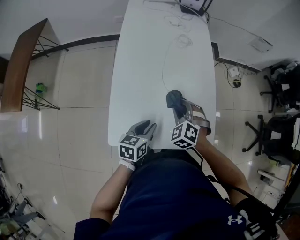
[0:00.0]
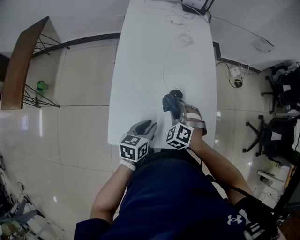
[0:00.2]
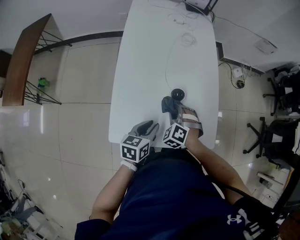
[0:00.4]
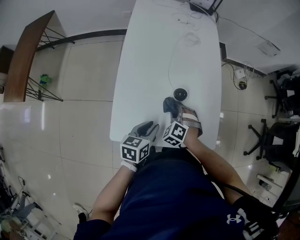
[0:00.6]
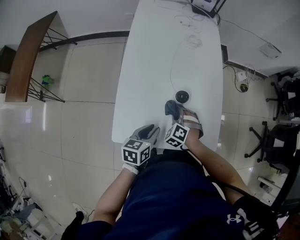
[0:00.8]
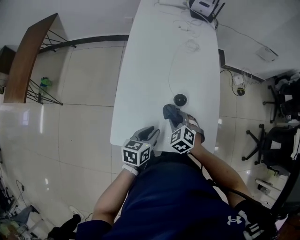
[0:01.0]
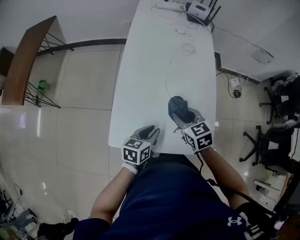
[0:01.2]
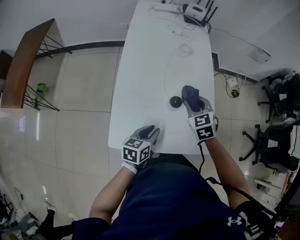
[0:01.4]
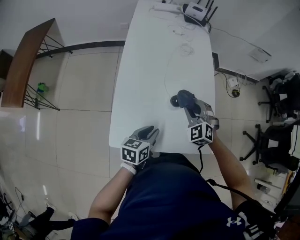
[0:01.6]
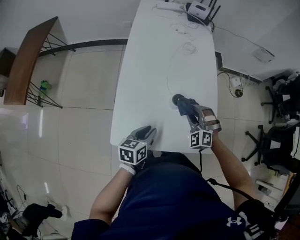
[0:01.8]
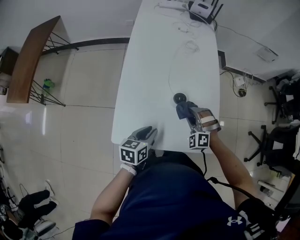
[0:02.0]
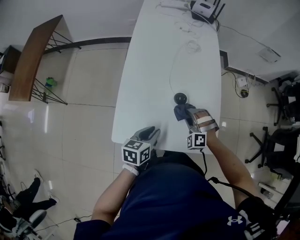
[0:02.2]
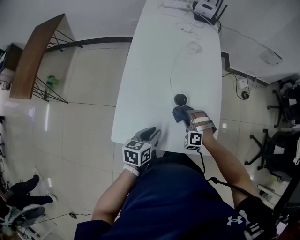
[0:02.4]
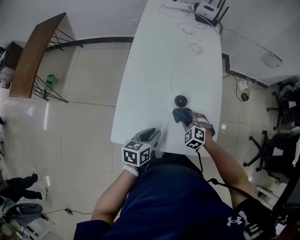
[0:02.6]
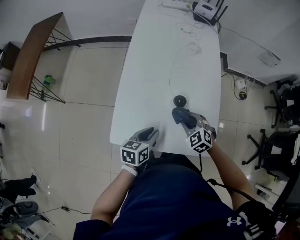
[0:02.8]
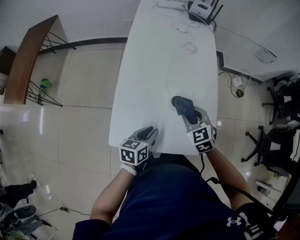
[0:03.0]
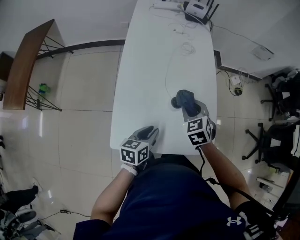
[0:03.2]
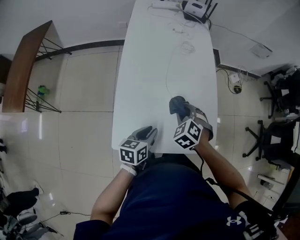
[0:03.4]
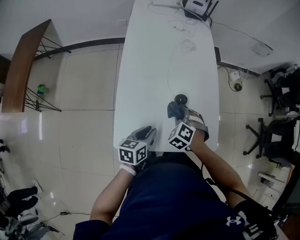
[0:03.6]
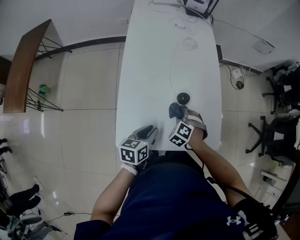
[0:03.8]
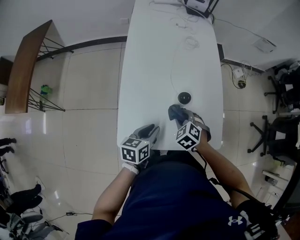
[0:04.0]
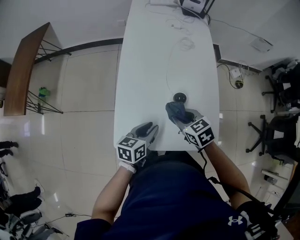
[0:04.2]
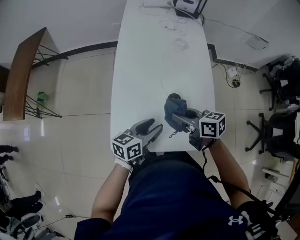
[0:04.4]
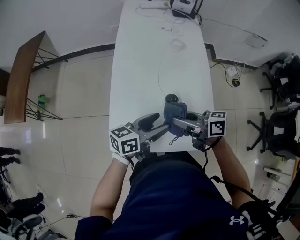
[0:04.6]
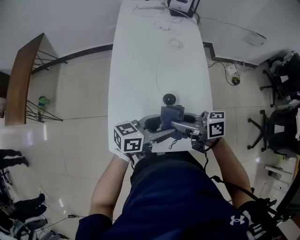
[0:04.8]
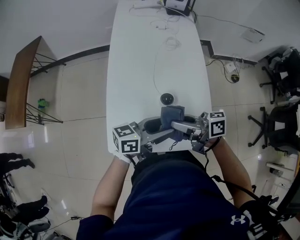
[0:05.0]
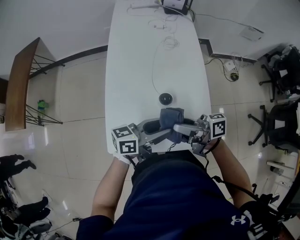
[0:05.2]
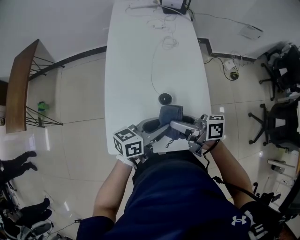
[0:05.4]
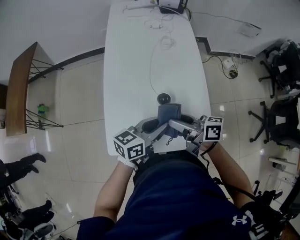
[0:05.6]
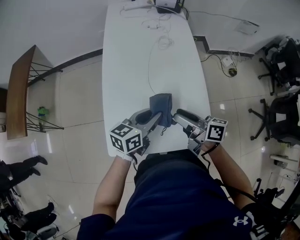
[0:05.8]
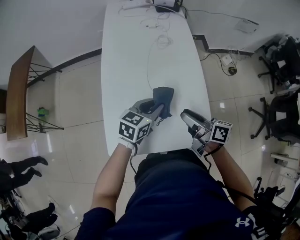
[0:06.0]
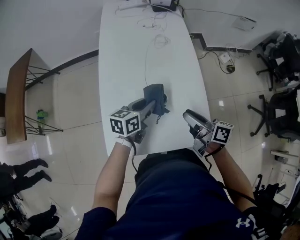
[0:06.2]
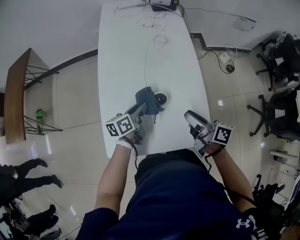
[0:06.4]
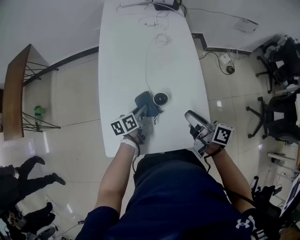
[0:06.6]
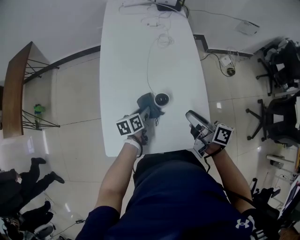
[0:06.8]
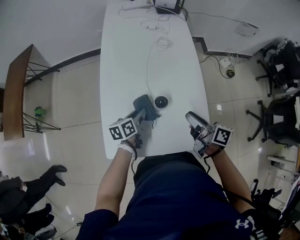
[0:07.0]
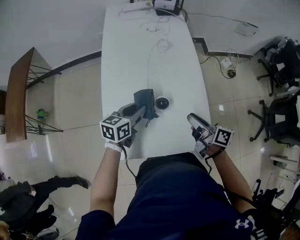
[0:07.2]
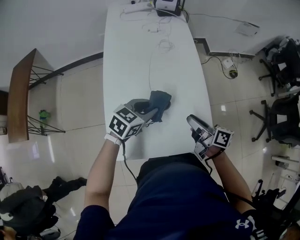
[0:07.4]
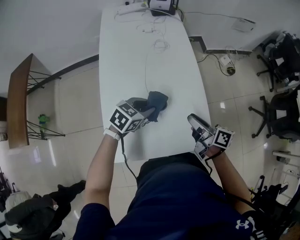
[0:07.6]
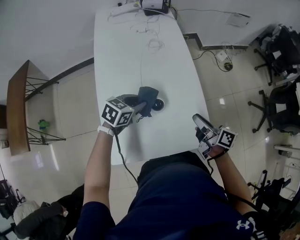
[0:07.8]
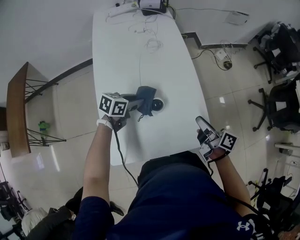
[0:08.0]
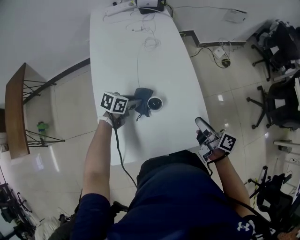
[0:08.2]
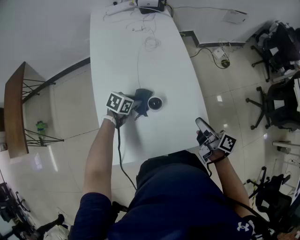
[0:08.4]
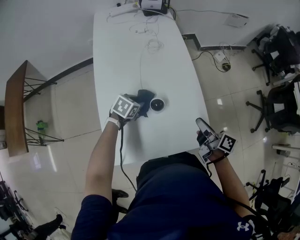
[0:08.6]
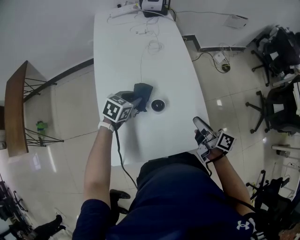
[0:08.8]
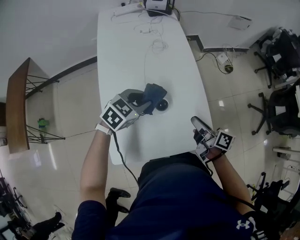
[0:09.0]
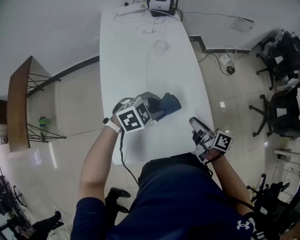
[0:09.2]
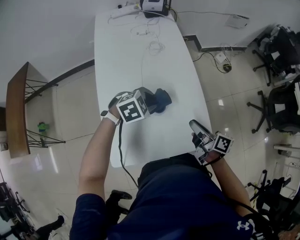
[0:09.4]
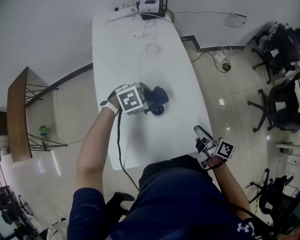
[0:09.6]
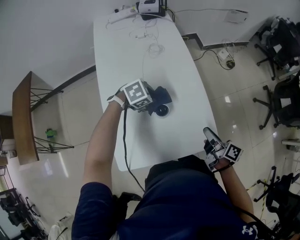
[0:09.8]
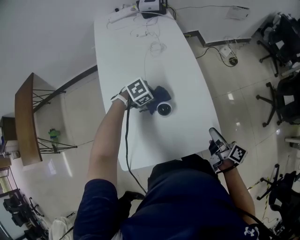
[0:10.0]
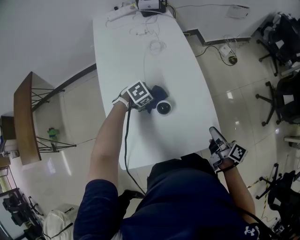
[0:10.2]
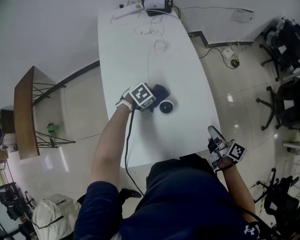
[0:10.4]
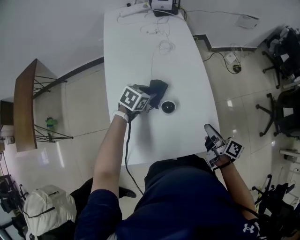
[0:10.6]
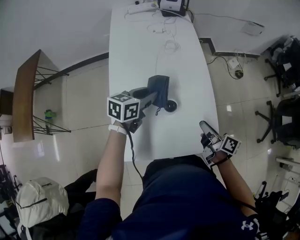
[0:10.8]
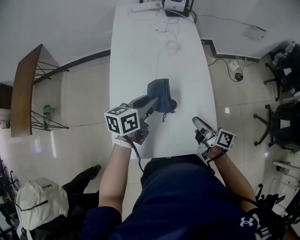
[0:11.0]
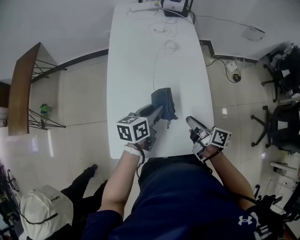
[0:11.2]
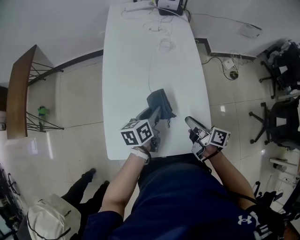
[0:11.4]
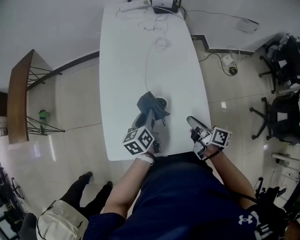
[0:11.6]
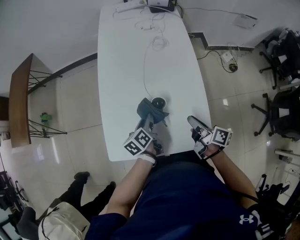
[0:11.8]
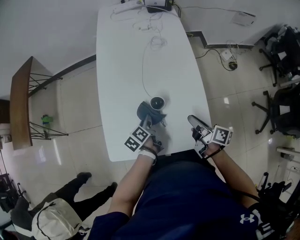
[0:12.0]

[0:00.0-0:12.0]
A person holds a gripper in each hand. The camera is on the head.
0:00.0 to 0:01.6: The right gripper moves approximately 10 cm downward and comes back.
0:01.6 to 0:03.0: The right gripper moves approximately 15 cm downward and comes back, and changes its angle by some 30 degrees.
0:03.0 to 0:04.4: The left gripper travels upward by approximately 5 cm, and opens; the right gripper moves about 10 cm downward and comes back, and rotates around the line of its fingers by approximately 50 degrees, clockwise from behind.
0:04.4 to 0:06.0: The right gripper changes place by roughly 10 cm, rotates roughly 30 degrees, and opens its fingers. The left gripper goes upward and returns, roughly 10 cm each way, turns by roughly 30 degrees, and closes its fingers.
0:06.0 to 0:07.6: The left gripper travels downward and back again, some 15 cm each way, and turns by some 20 degrees.
0:07.6 to 0:09.0: The left gripper moves about 10 cm downward and comes back.
0:09.0 to 0:10.4: The left gripper heads downward, covering approximately 15 cm, and swivels roughly 30 degrees. Meanwhile the right gripper moves approximately 10 cm.
0:10.4 to 0:12.0: The left gripper travels upward and back again, about 20 cm each way, and twists about 90 degrees counterclockwise, seen from behind.

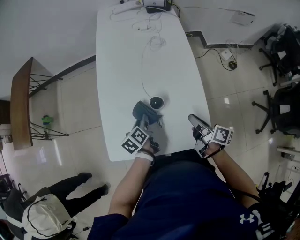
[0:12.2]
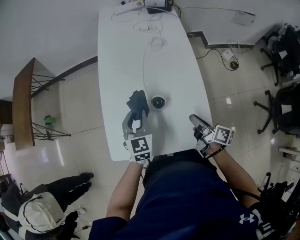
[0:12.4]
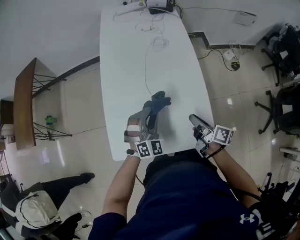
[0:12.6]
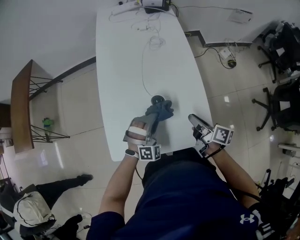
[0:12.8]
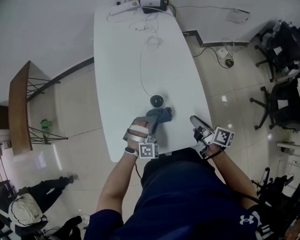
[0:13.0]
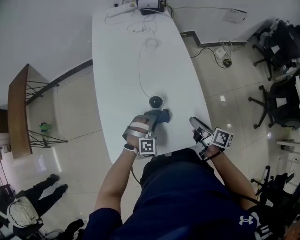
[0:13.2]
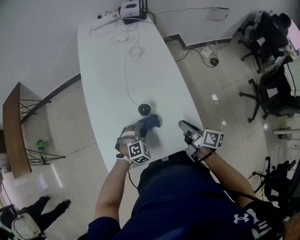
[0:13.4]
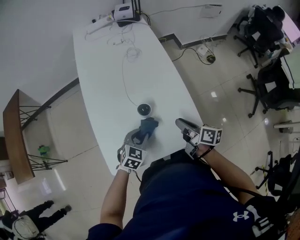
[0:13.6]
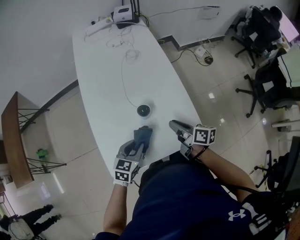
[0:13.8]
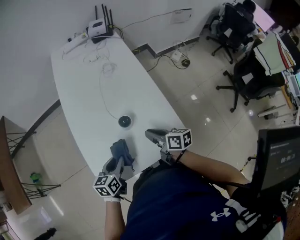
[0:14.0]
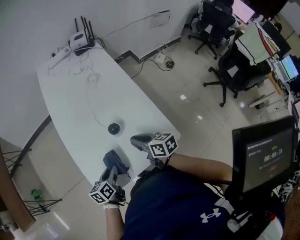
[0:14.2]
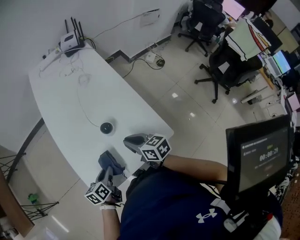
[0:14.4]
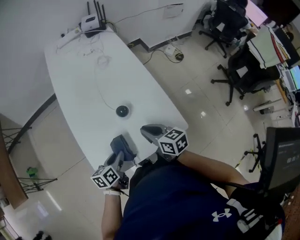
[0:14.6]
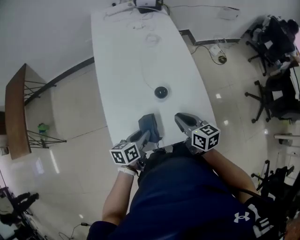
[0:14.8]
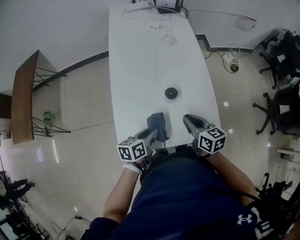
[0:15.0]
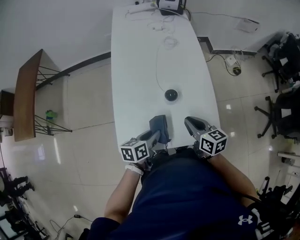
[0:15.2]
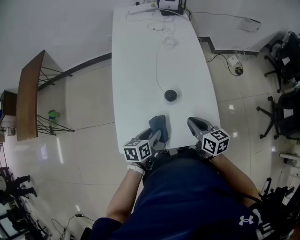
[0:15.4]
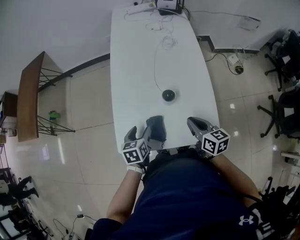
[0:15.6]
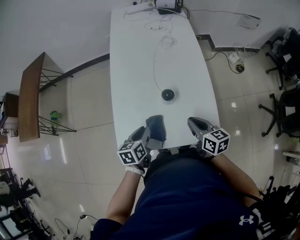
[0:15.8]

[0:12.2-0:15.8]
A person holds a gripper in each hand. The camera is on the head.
0:12.2 to 0:14.0: The left gripper swings up and down, approximately 15 cm each way, with 2 reversals, and swivels some 50 degrees. The right gripper changes place by approximately 10 cm.
0:14.0 to 0:15.8: The right gripper ends up roughly 5 cm from where it was, and rotates some 20 degrees. Meanwhile the left gripper turns by about 20 degrees, and opens and closes again.

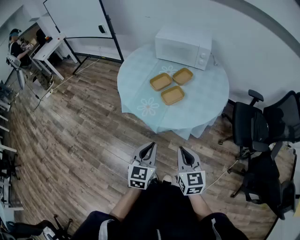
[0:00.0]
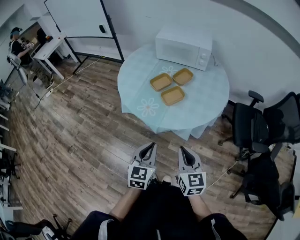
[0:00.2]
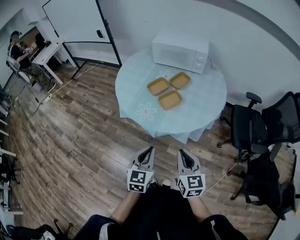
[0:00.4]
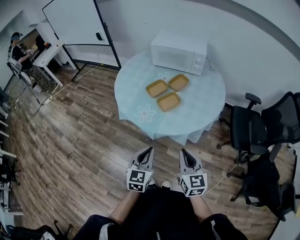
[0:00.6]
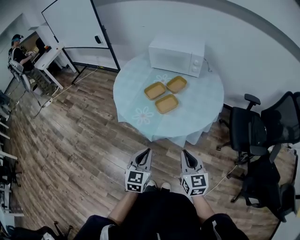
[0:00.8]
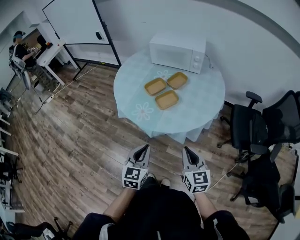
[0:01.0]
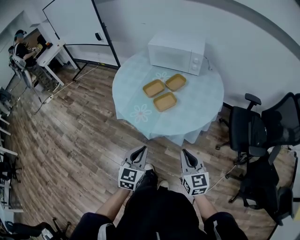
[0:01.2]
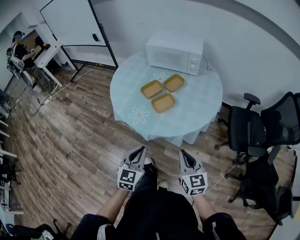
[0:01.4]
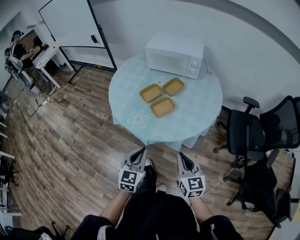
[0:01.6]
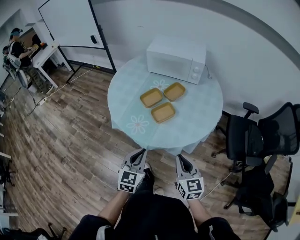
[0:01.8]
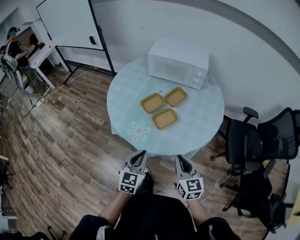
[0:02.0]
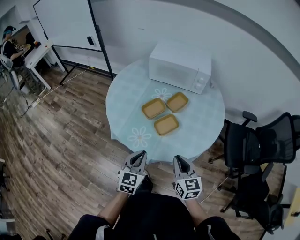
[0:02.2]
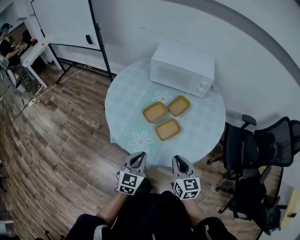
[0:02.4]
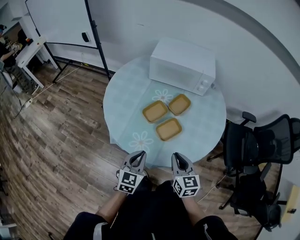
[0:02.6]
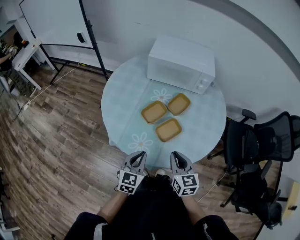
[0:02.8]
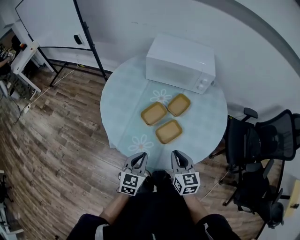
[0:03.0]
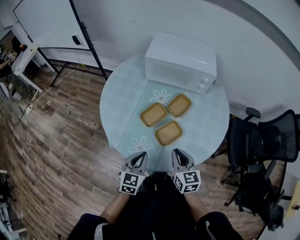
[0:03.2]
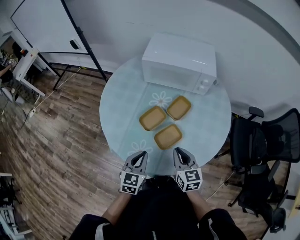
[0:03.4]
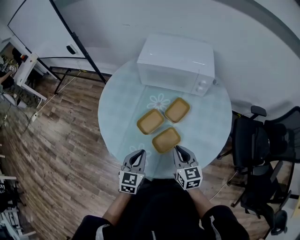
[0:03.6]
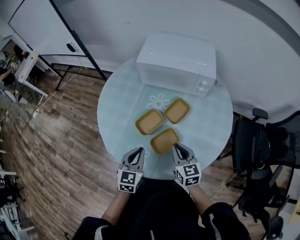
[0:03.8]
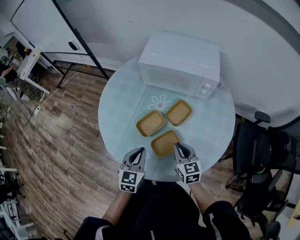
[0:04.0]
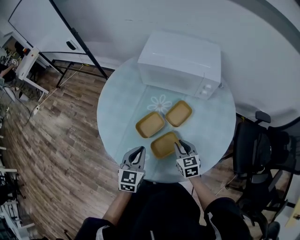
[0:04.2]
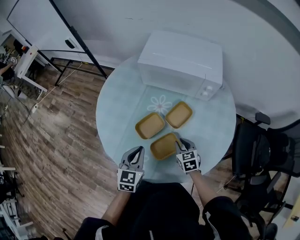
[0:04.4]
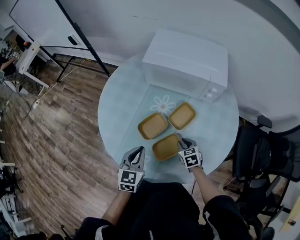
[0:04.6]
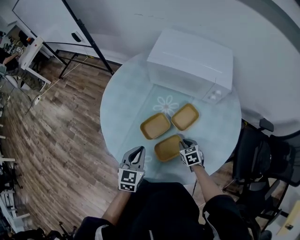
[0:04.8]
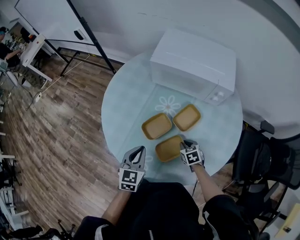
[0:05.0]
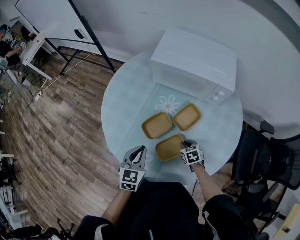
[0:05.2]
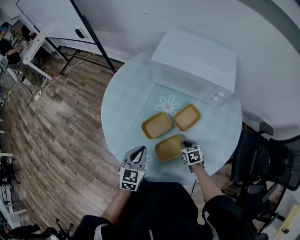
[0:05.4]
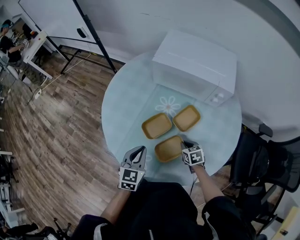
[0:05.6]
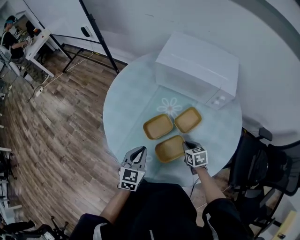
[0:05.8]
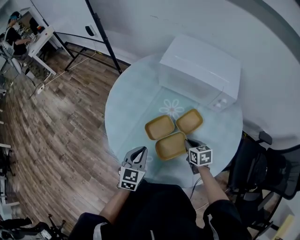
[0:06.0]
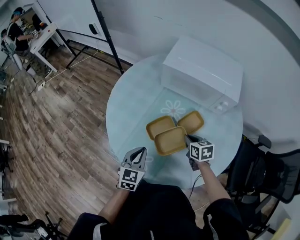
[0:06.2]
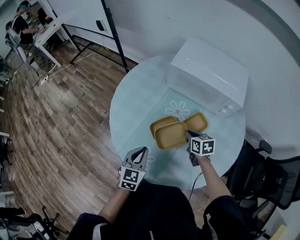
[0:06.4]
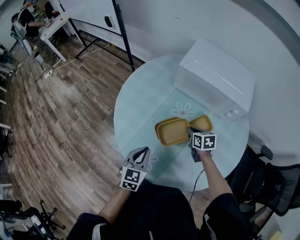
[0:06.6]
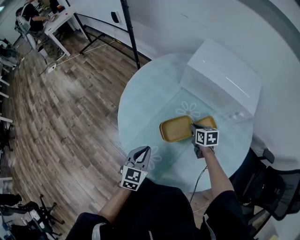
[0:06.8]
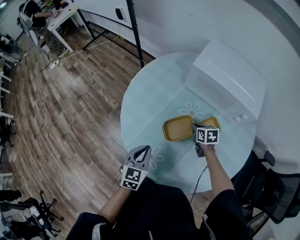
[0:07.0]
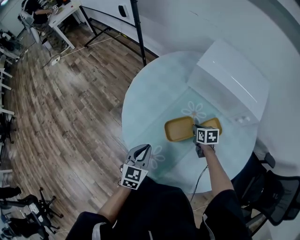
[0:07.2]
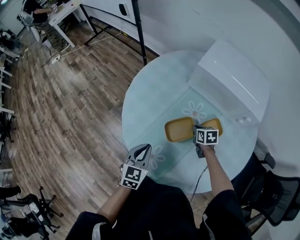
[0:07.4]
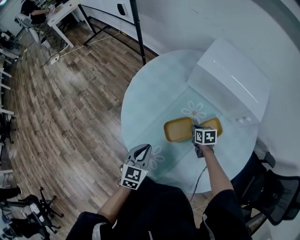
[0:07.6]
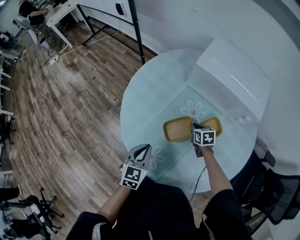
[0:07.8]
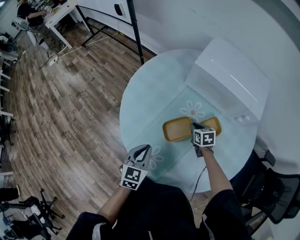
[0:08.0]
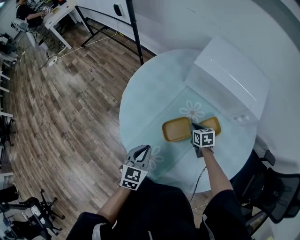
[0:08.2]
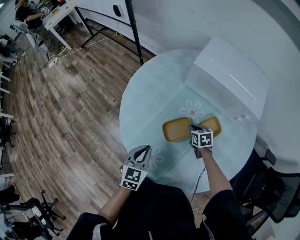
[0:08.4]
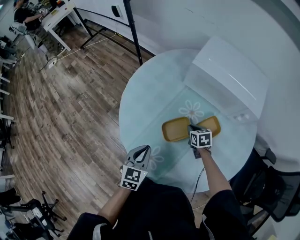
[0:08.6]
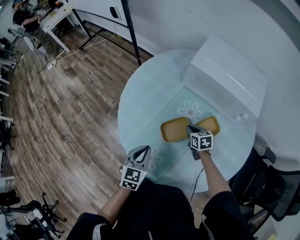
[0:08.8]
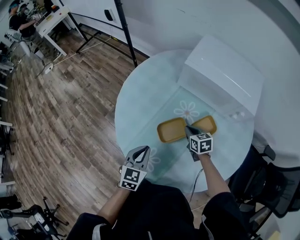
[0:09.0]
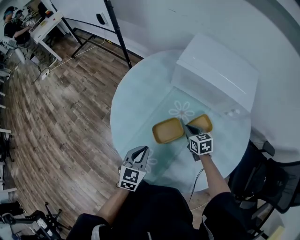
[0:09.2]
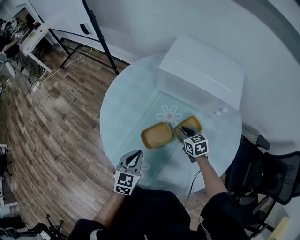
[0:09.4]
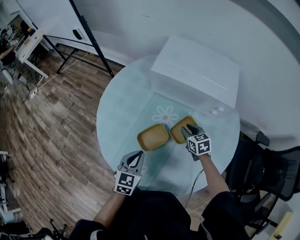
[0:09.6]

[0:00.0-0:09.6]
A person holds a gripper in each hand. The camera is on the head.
0:00.0 to 0:01.6: The right gripper goes about 5 cm to the right. Meanwhile the left gripper is displaced forward by approximately 5 cm.
0:01.6 to 0:03.2: The left gripper heads forward, covering about 20 cm, while the right gripper moves forward and to the left, about 25 cm.
0:03.2 to 0:04.8: The right gripper travels downward and forward by roughly 25 cm, and angles its fingers downward, by approximately 30 degrees, while the left gripper heads forward, covering roughly 10 cm.
0:04.8 to 0:06.4: The right gripper moves upward and forward, roughly 15 cm.
0:06.4 to 0:08.0: The right gripper shifts approximately 10 cm downward and forward.
0:08.0 to 0:09.6: The left gripper moves to the right, roughly 10 cm, while the right gripper shifts some 10 cm to the right and upward.
